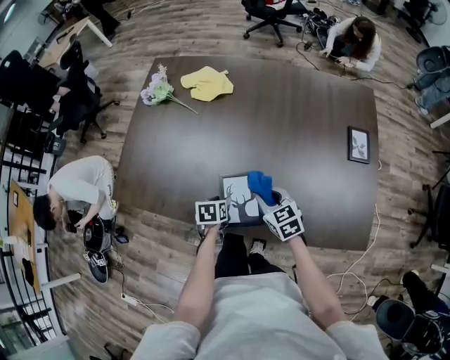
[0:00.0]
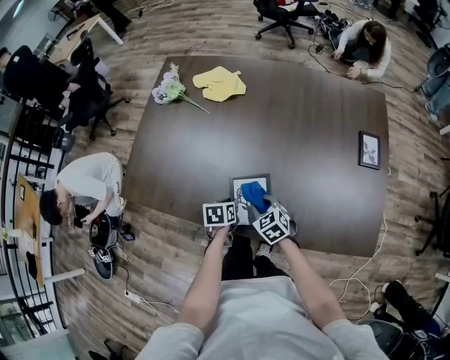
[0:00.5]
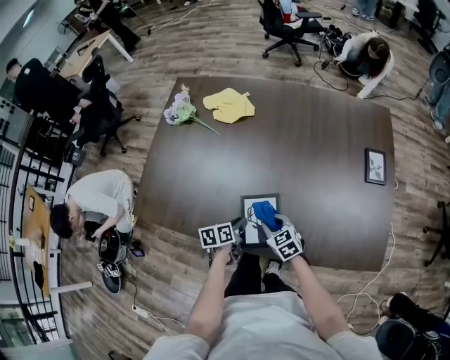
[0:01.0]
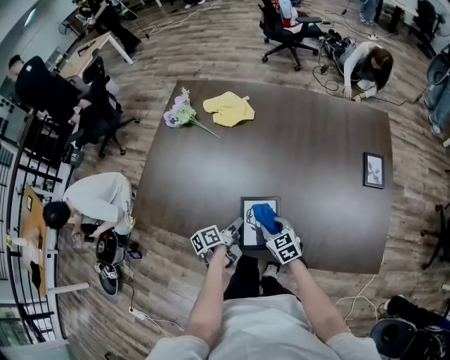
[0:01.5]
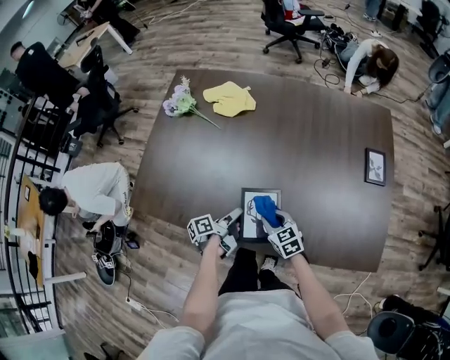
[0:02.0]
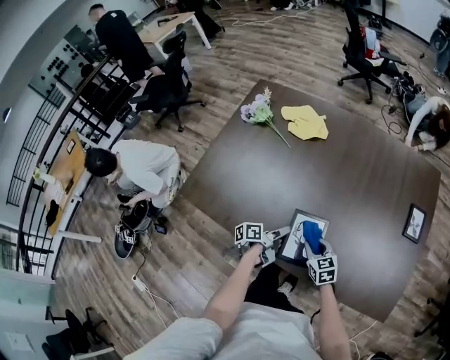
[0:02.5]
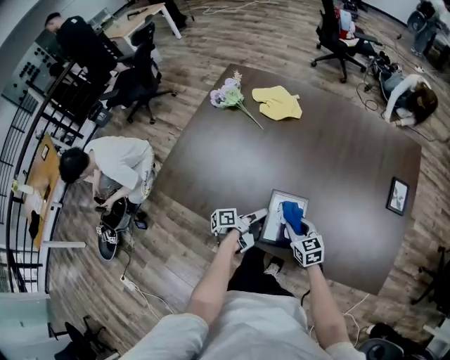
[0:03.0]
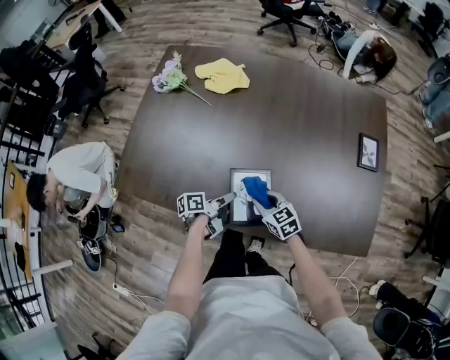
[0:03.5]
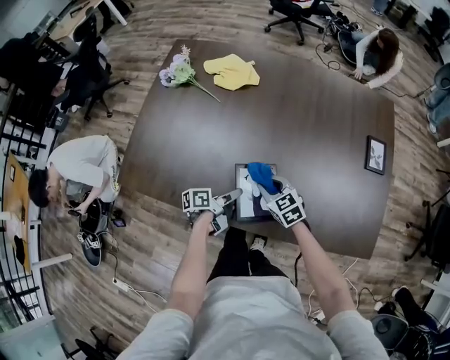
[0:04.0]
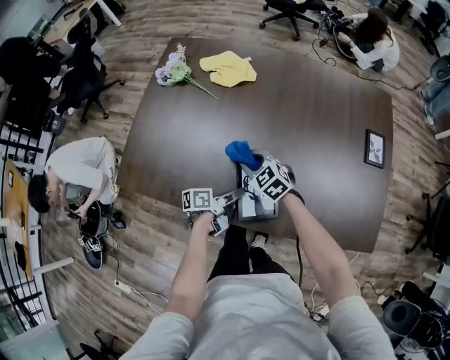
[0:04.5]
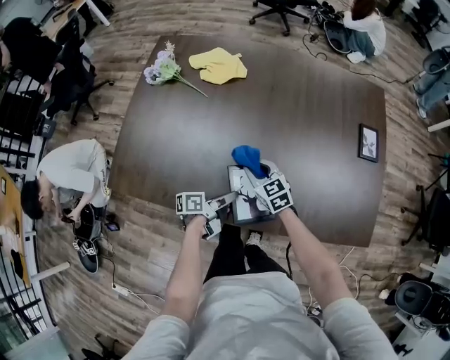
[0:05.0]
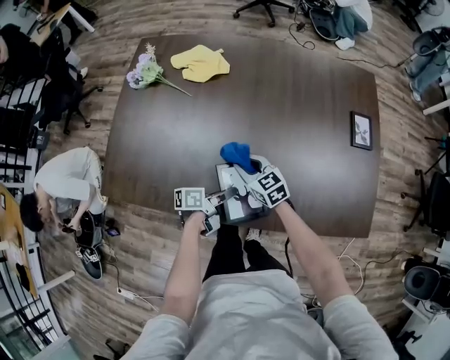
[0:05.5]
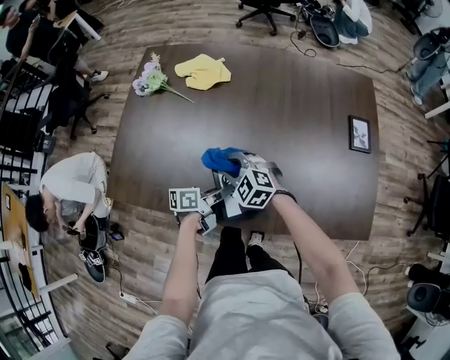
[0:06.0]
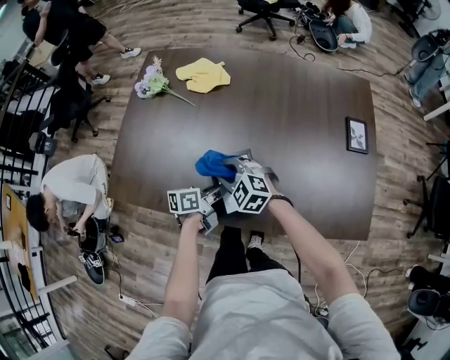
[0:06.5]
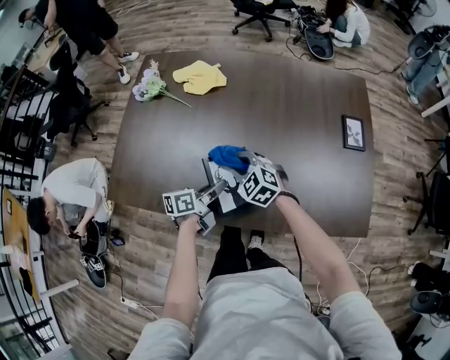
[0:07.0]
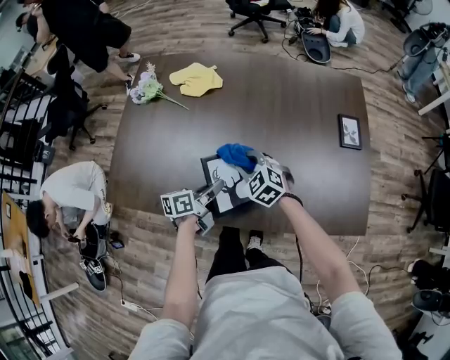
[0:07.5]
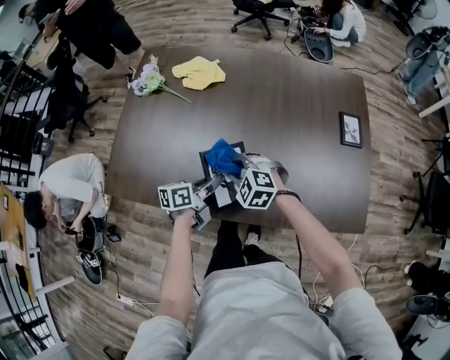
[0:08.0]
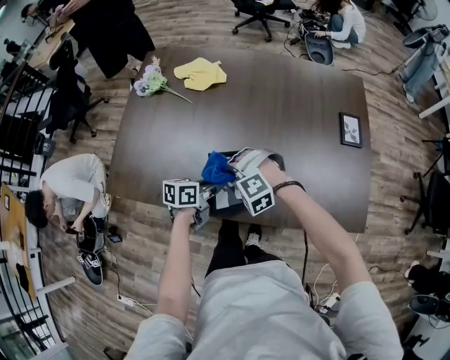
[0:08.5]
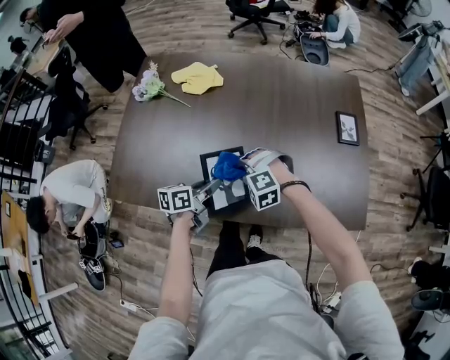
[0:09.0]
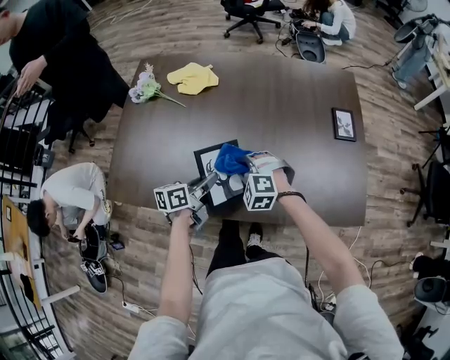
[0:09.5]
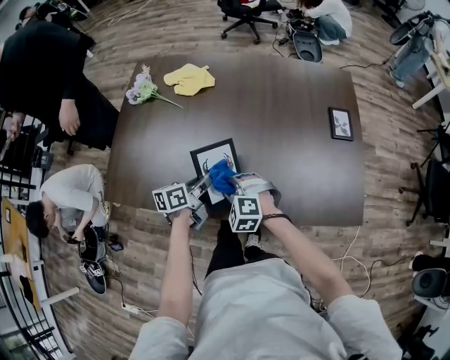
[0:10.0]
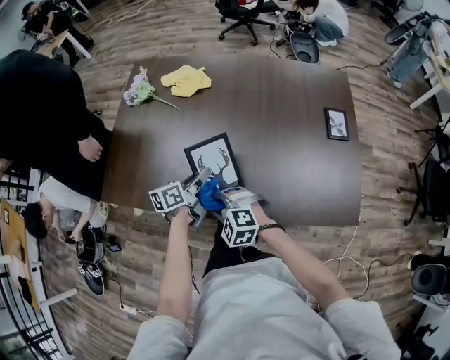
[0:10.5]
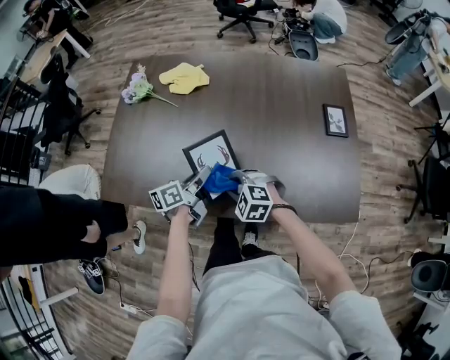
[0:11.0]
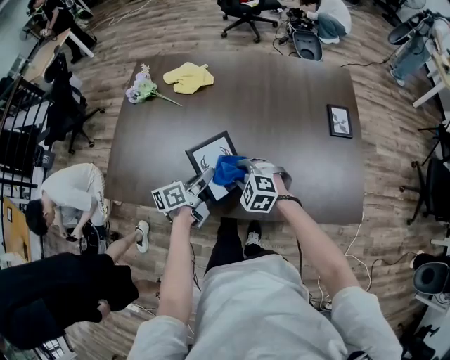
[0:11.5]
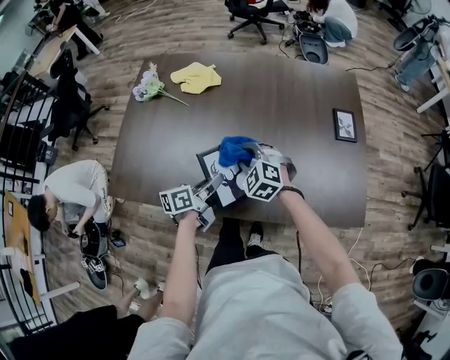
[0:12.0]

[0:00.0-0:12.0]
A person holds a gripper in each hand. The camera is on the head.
0:00.0 to 0:02.0: The right gripper is displaced downward by approximately 5 cm. Meanwhile the left gripper tips its fingers upward by roughly 40 degrees.
0:02.0 to 0:04.0: The grippers make only small movements.
0:04.0 to 0:06.0: The right gripper goes left and right, approximately 10 cm each way, reversing 2 times, and turns by some 30 degrees. The left gripper moves approximately 5 cm.
0:06.0 to 0:08.0: The right gripper ends up some 5 cm from where it was.
0:08.0 to 0:10.0: The right gripper travels backward by some 5 cm.
0:10.0 to 0:12.0: The right gripper heads forward, covering roughly 10 cm.

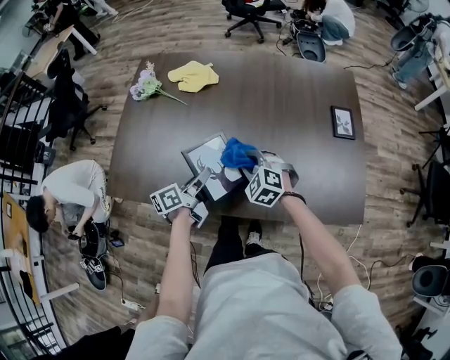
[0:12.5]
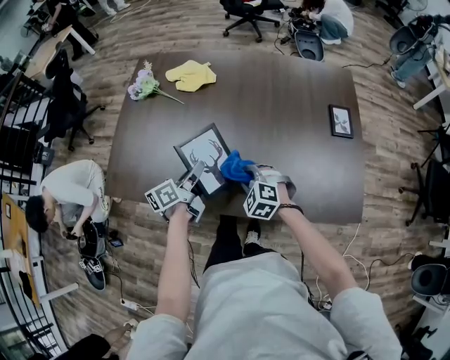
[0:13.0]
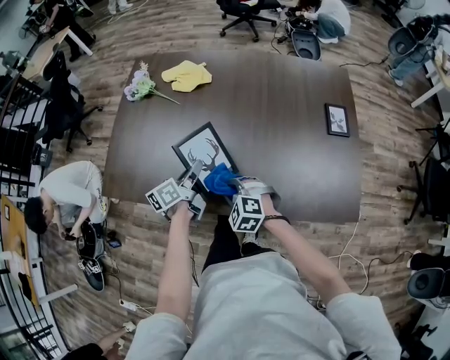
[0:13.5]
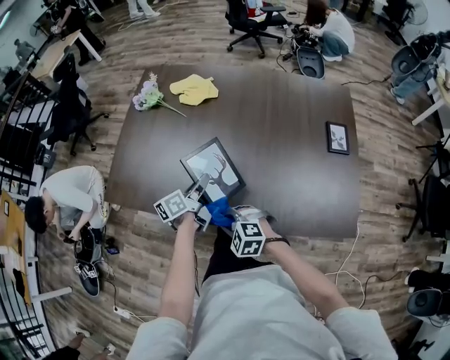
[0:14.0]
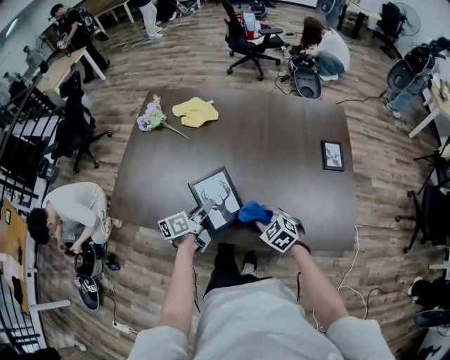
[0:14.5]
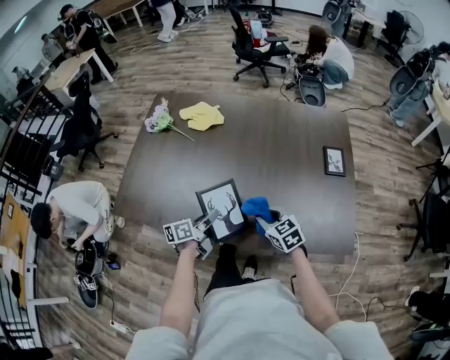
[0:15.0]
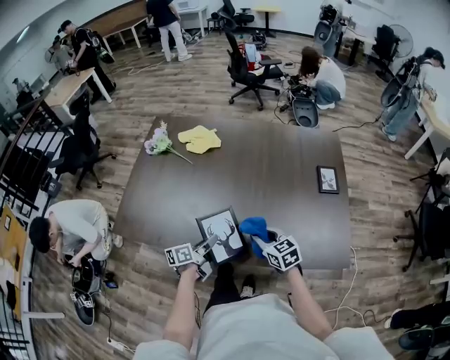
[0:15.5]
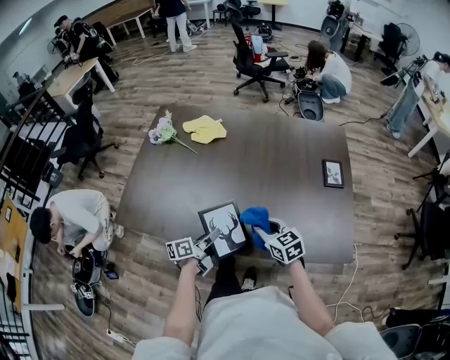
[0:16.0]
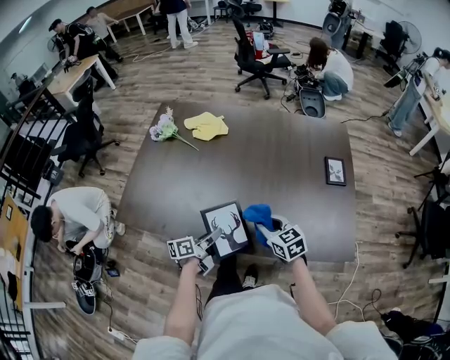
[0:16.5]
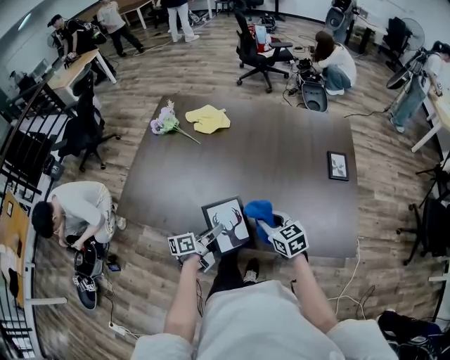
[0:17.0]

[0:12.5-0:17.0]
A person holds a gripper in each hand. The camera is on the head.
0:12.5 to 0:14.5: The right gripper goes some 10 cm backward and to the right, and rotates roughly 20 degrees.
0:14.5 to 0:17.0: The left gripper heads backward, covering approximately 10 cm. The right gripper shifts about 5 cm upward, and swivels approximately 30 degrees.

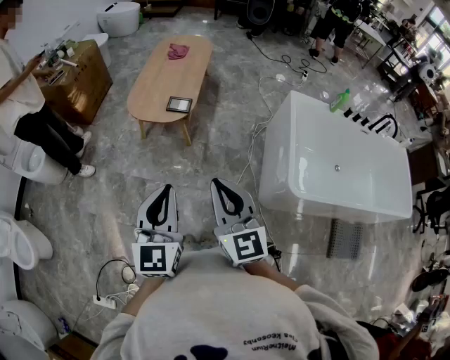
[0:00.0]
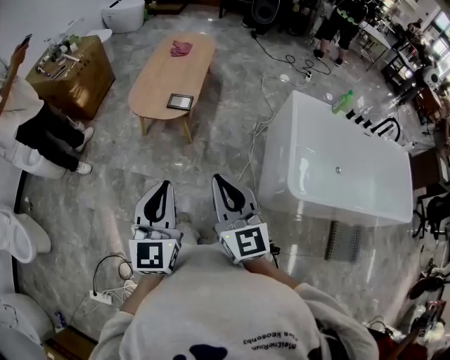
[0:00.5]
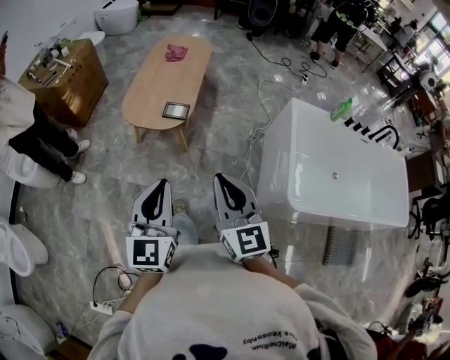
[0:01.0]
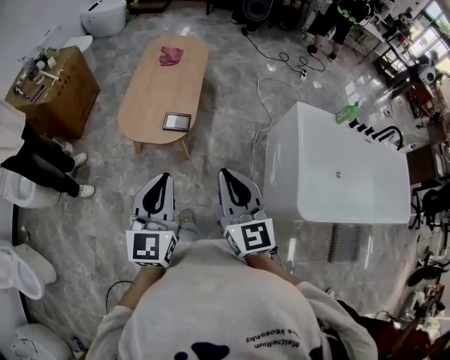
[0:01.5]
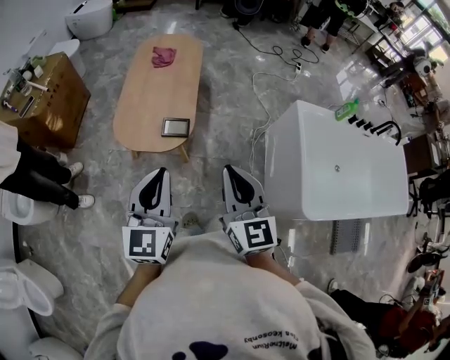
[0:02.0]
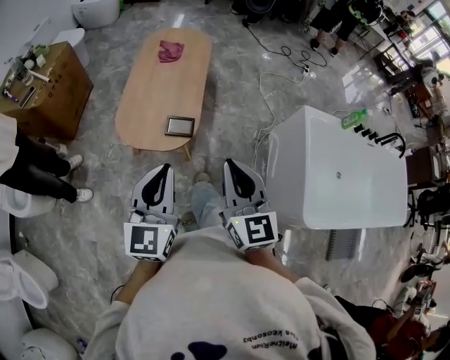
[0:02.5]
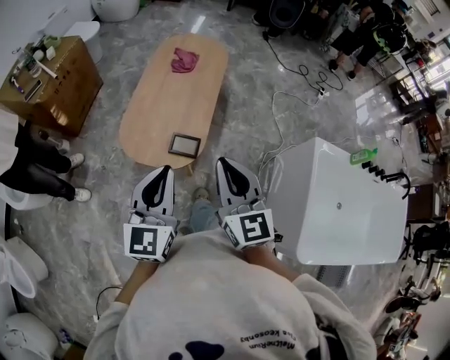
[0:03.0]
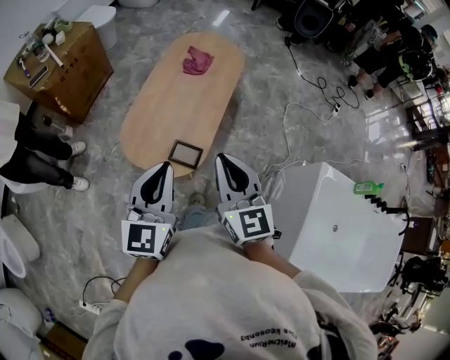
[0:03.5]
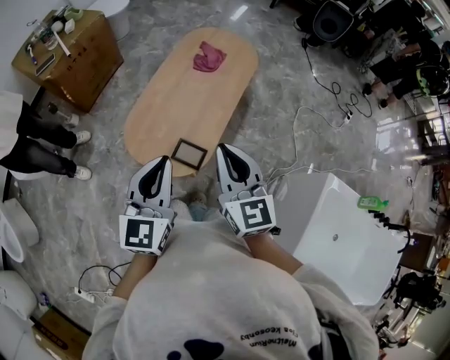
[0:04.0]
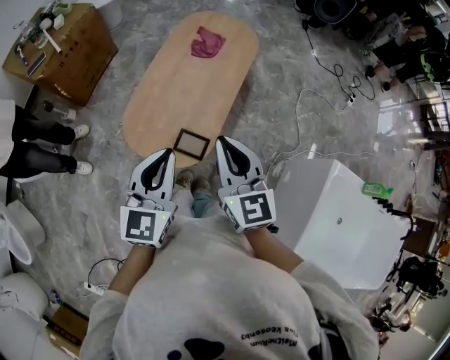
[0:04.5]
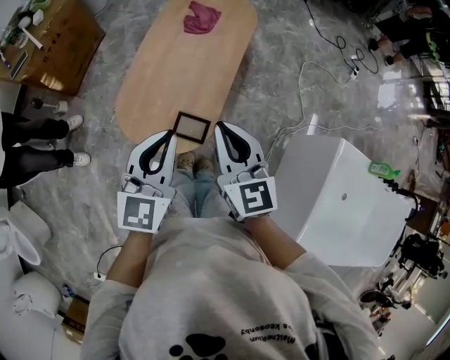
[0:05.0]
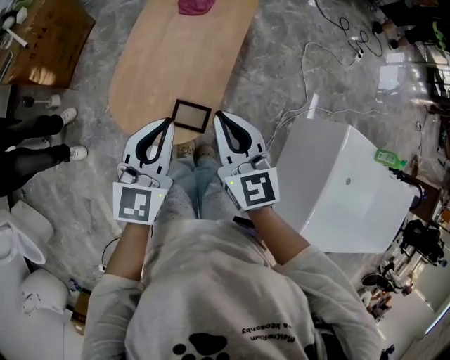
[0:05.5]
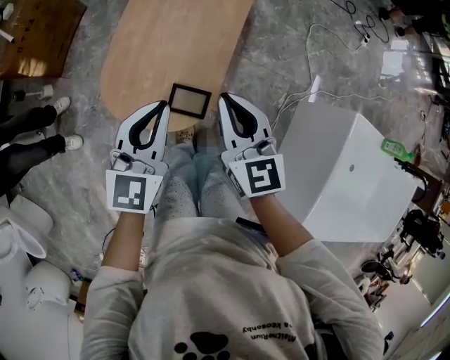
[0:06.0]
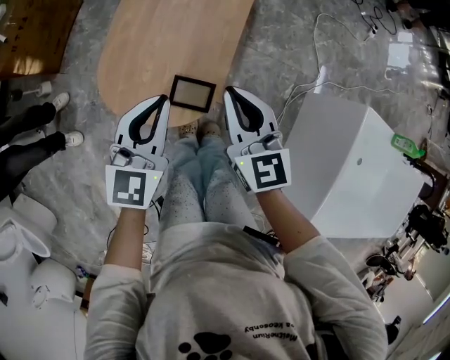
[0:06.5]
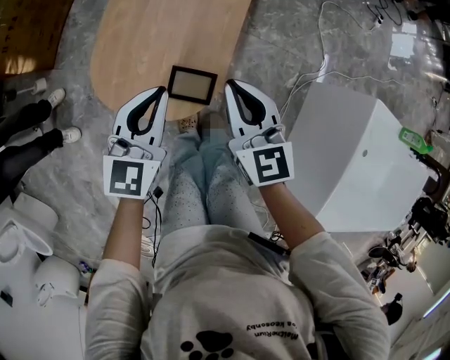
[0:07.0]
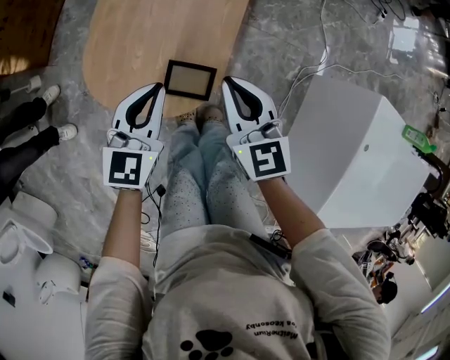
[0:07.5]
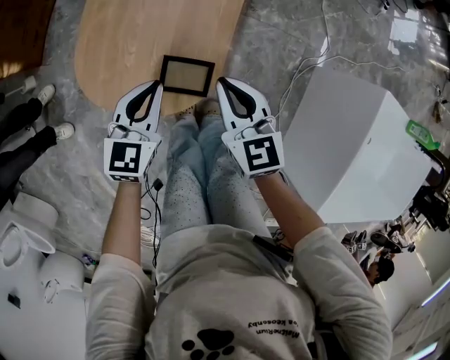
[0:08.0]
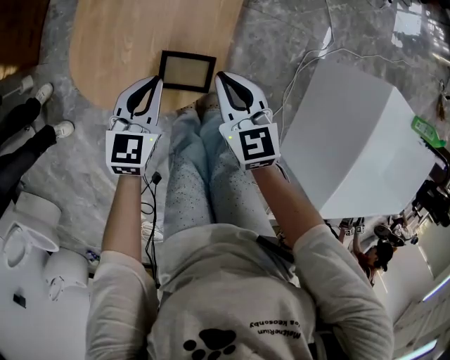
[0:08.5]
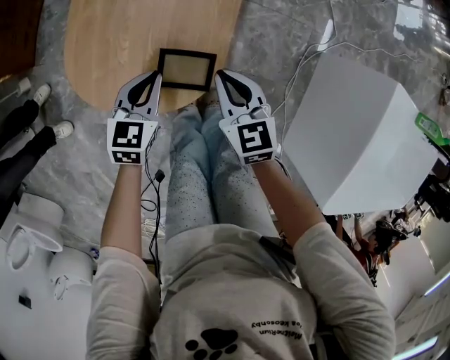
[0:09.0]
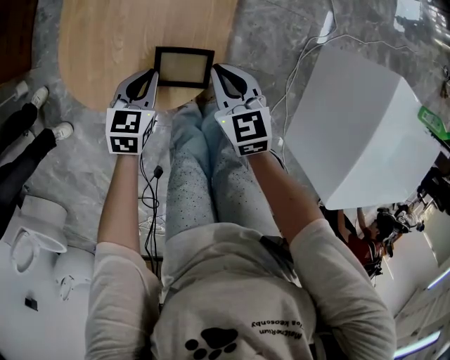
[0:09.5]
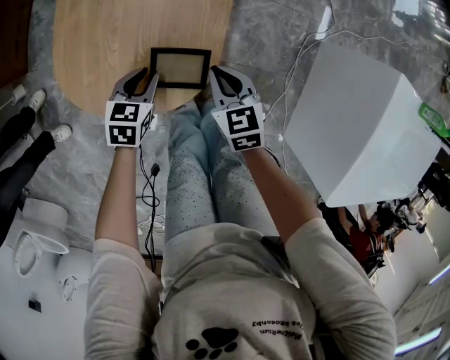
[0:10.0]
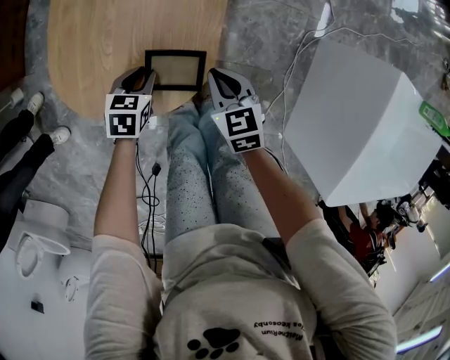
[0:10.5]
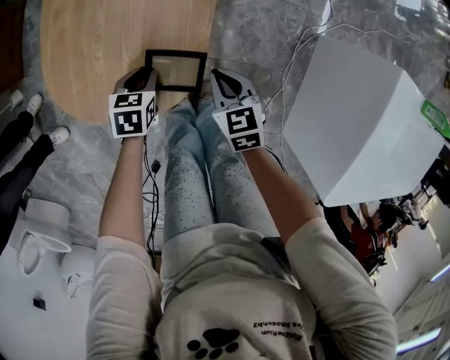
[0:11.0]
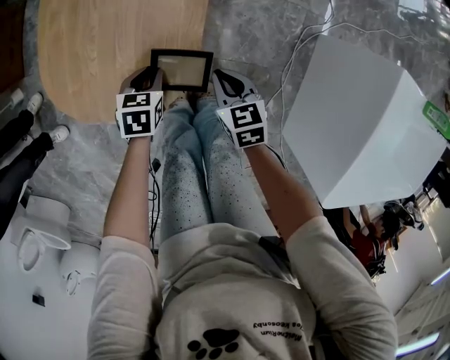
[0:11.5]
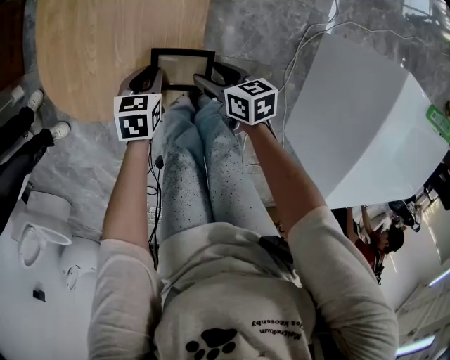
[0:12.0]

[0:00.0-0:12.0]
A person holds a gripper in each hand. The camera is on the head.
0:00.0 to 0:02.0: The grippers both shift forward by roughly 25 cm.
0:02.0 to 0:04.0: Both grippers travel together forward, roughly 30 cm. The right gripper rotates roughly 30 degrees.
0:04.0 to 0:06.0: Both grippers travel together downward and forward, roughly 15 cm. The left gripper turns by some 20 degrees.
0:06.0 to 0:08.0: Both grippers travel together downward, roughly 20 cm.
0:08.0 to 0:10.0: The grippers both shift downward by approximately 15 cm. The left gripper swivels roughly 30 degrees, and opens its fingers.
0:10.0 to 0:12.0: The left gripper ends up roughly 5 cm from where it was. The right gripper moves downward, roughly 10 cm, swivels about 40 degrees, and opens its fingers.
